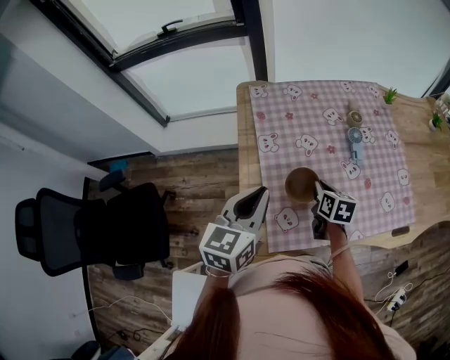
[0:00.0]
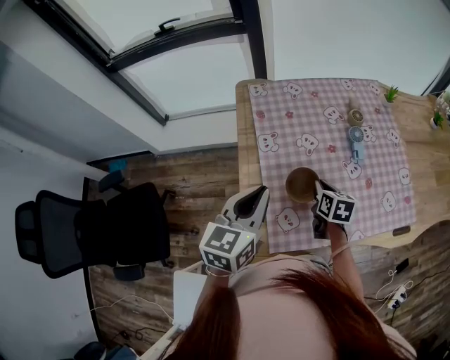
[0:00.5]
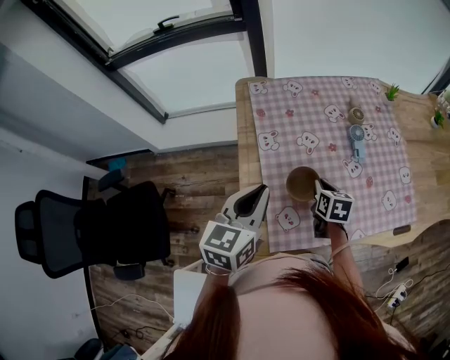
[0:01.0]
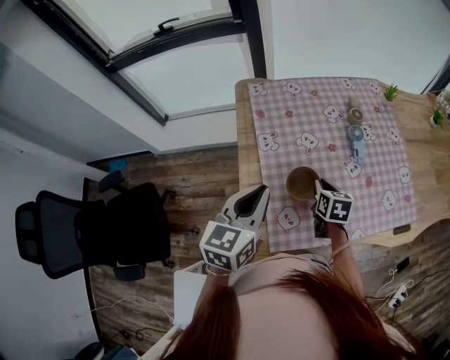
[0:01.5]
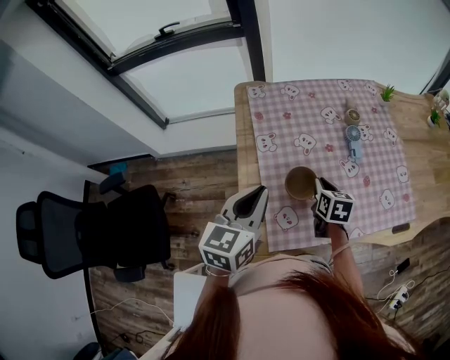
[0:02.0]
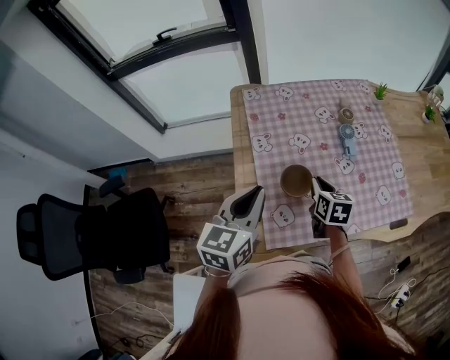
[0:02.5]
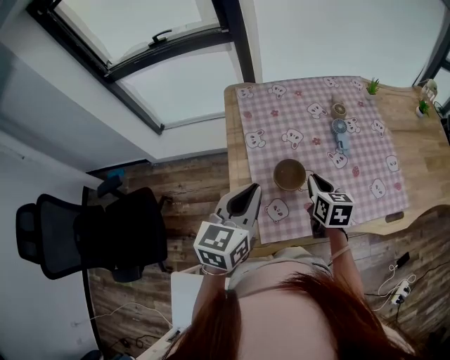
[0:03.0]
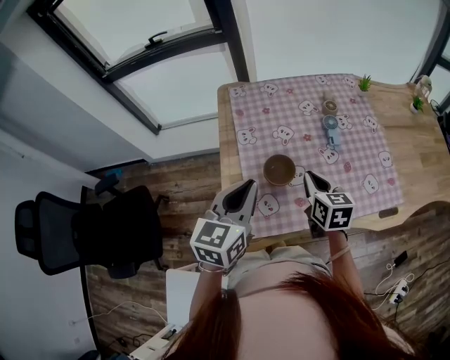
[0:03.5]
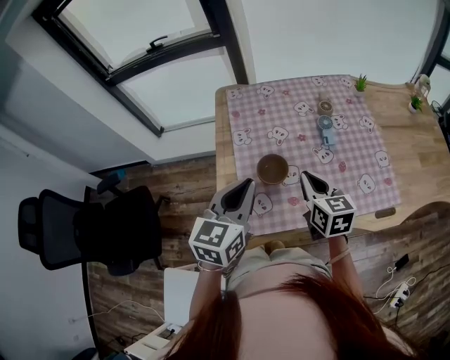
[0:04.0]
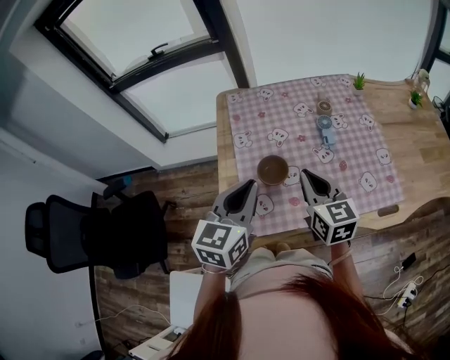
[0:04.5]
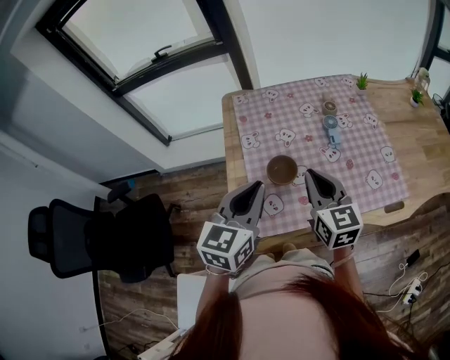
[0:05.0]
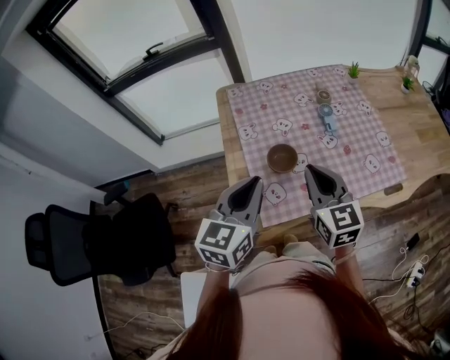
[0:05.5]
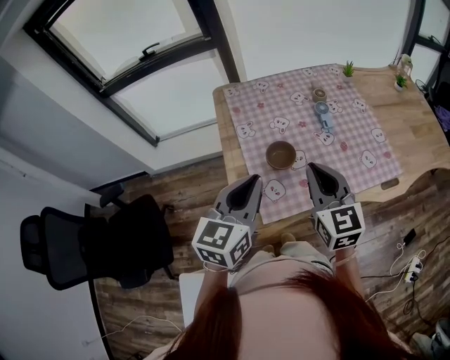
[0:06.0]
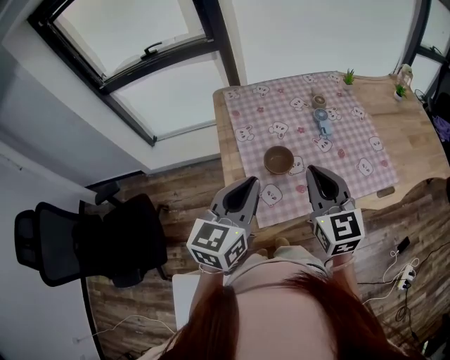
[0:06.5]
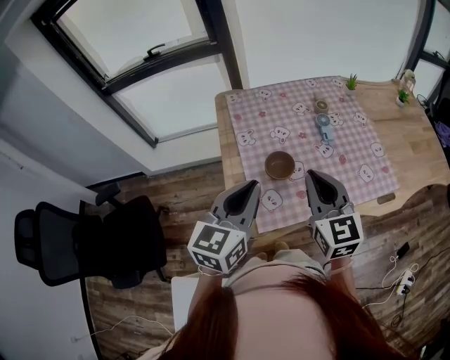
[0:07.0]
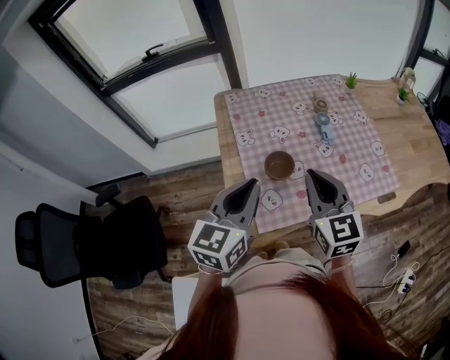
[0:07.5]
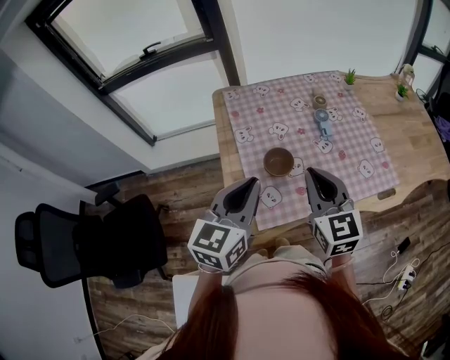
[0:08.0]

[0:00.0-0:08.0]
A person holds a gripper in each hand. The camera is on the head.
0:00.0 to 0:02.0: The grippers move only a little.
0:02.0 to 0:04.0: The right gripper moves upward and backward, about 15 cm, and turns by about 20 degrees, while the left gripper travels to the right and backward by approximately 10 cm.
0:04.0 to 0:06.0: The left gripper shifts about 5 cm backward; the right gripper heads upward and backward, covering about 15 cm, and turns by about 20 degrees.
0:06.0 to 0:08.0: The grippers stay close to where they were, moving slightly.

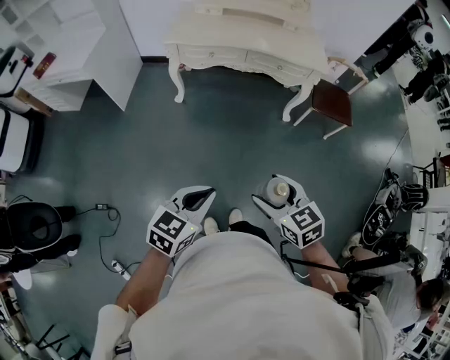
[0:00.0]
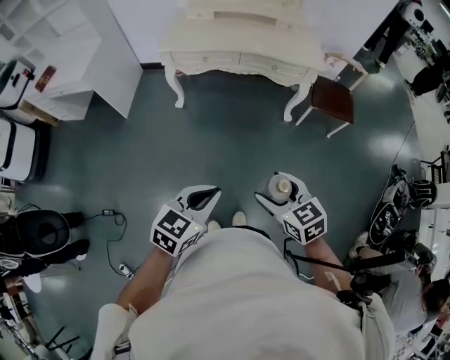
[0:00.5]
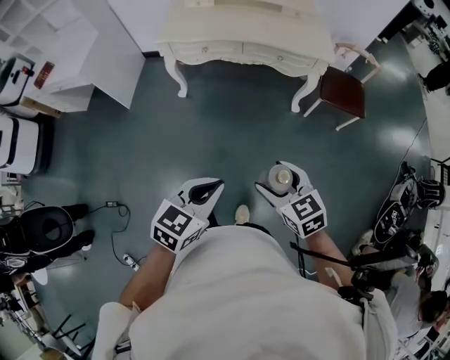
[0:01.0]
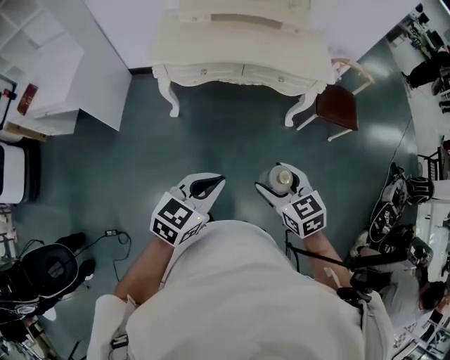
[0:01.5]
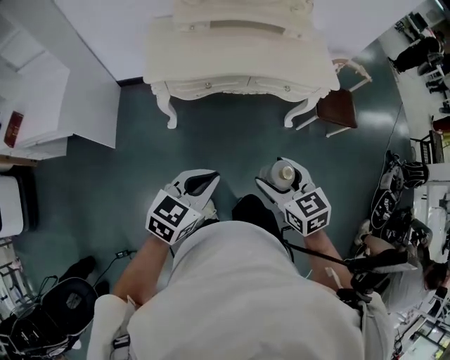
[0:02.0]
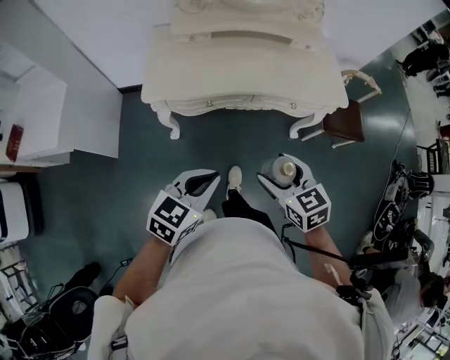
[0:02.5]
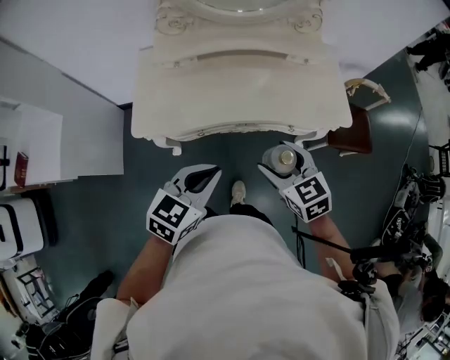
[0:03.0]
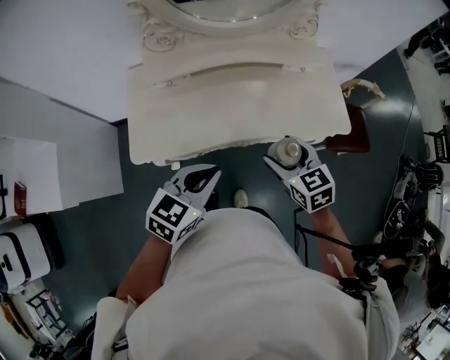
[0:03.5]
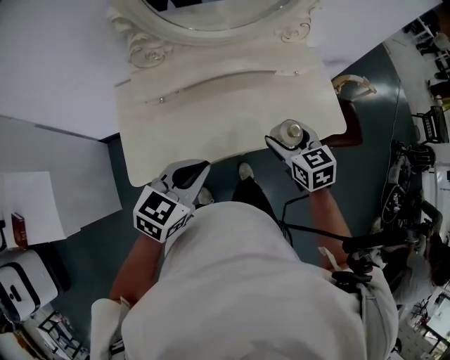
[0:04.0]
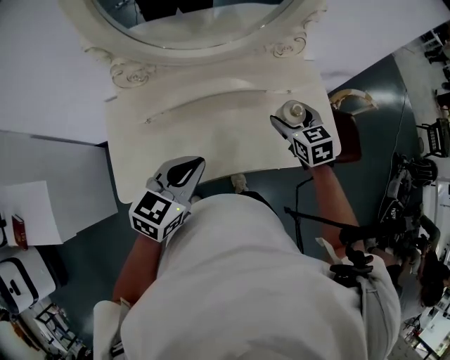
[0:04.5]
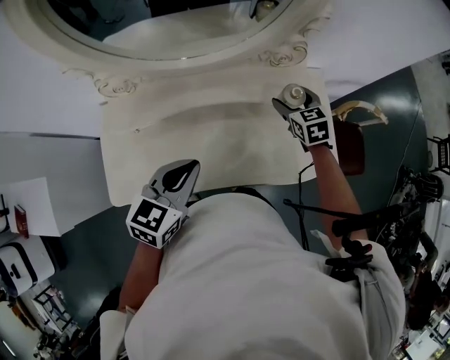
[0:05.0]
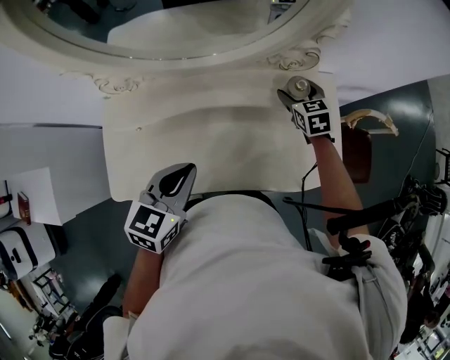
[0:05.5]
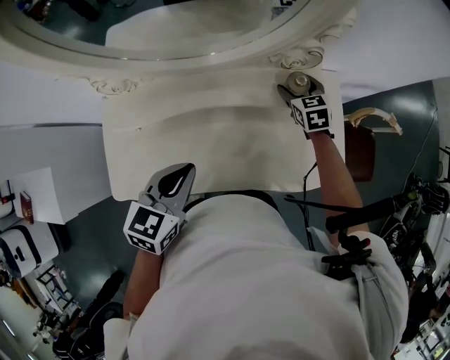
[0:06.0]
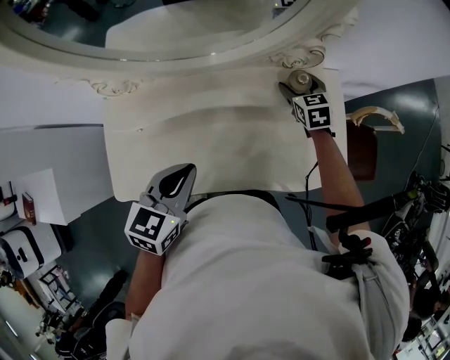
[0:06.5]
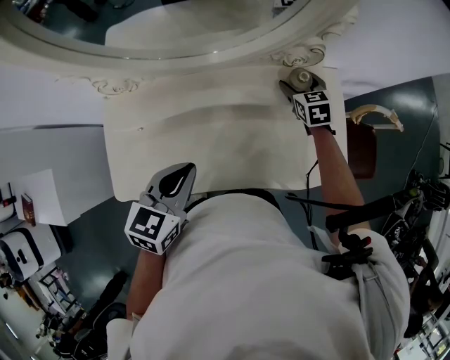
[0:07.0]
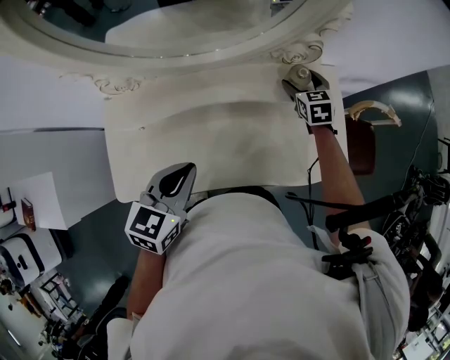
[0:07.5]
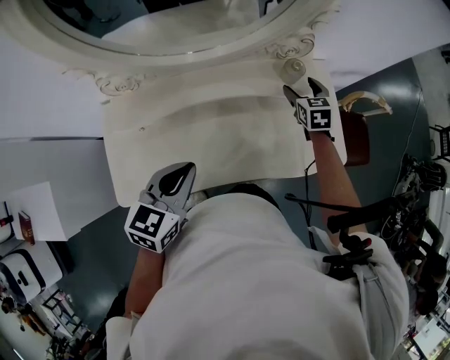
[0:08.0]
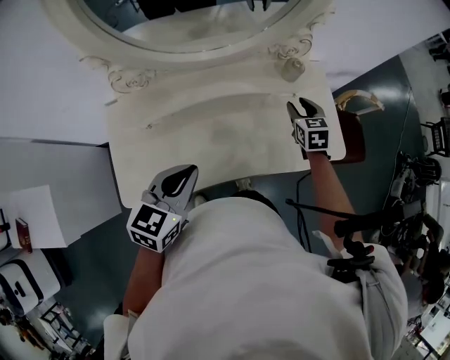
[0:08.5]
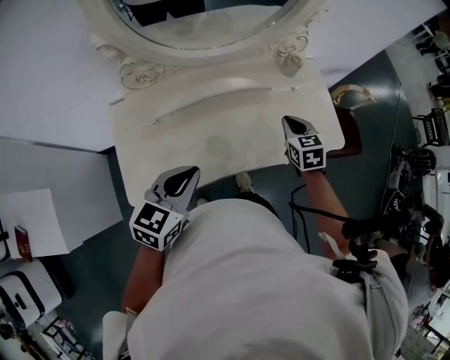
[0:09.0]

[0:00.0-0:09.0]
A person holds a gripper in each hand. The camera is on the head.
0:00.0 to 0:02.0: The two grippers go roughly 35 cm forward.
0:02.0 to 0:04.5: The two grippers travel together, forward, approximately 60 cm.
0:04.5 to 0:07.0: The left gripper heads forward, covering some 10 cm; the right gripper shifts some 25 cm forward and downward.
0:07.0 to 0:09.0: The right gripper moves backward, about 25 cm, and closes. The left gripper heads backward and to the left, covering roughly 15 cm.

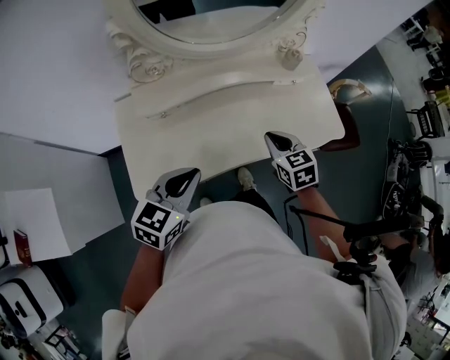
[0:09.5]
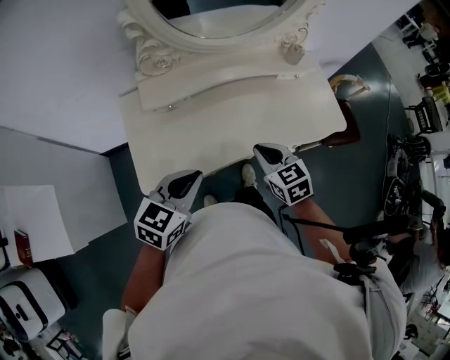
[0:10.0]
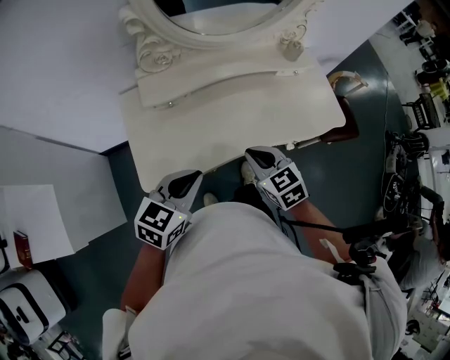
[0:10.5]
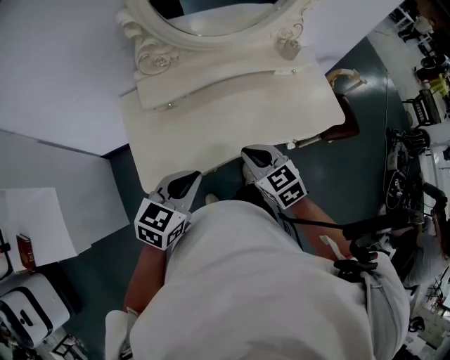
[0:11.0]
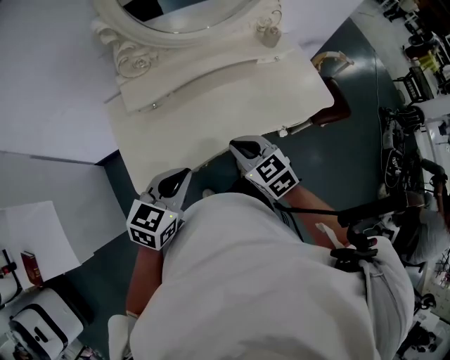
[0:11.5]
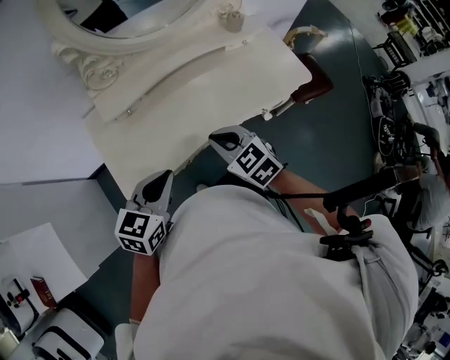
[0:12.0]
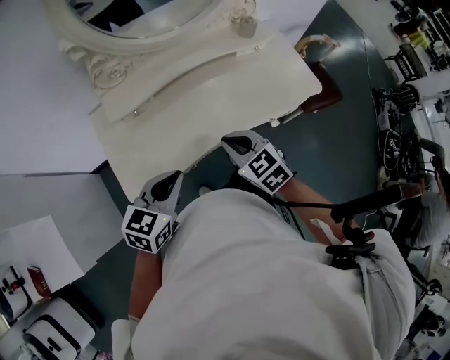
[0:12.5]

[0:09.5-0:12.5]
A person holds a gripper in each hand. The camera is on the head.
0:09.5 to 0:11.0: The left gripper moves backward, roughly 5 cm. The right gripper shifts some 15 cm backward and to the left.
0:11.0 to 0:12.5: The grippers make only small movements.

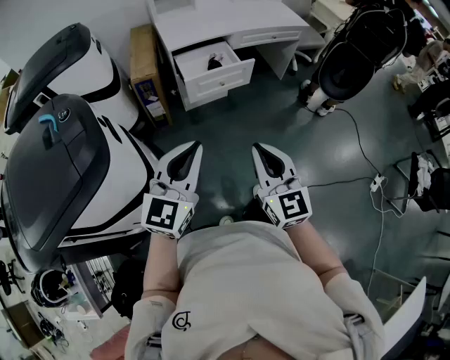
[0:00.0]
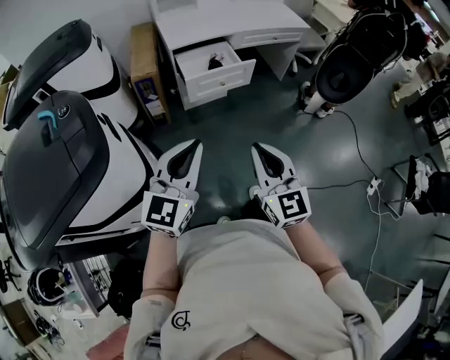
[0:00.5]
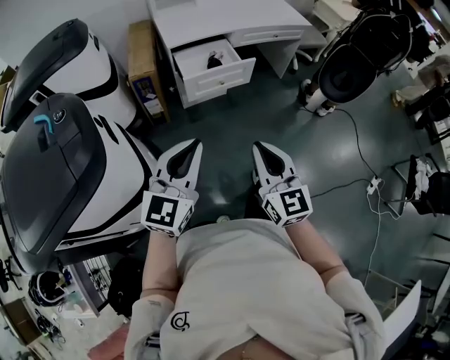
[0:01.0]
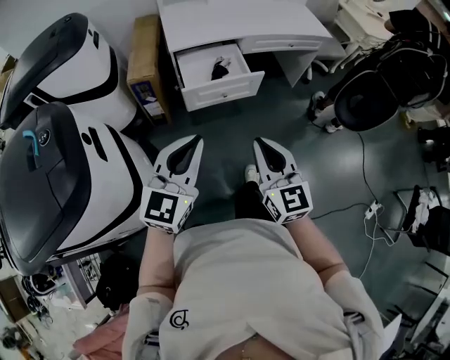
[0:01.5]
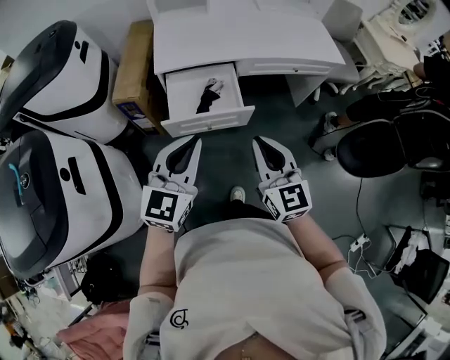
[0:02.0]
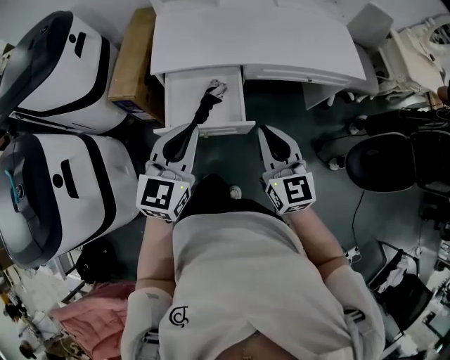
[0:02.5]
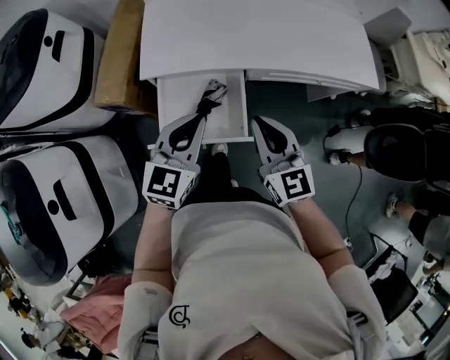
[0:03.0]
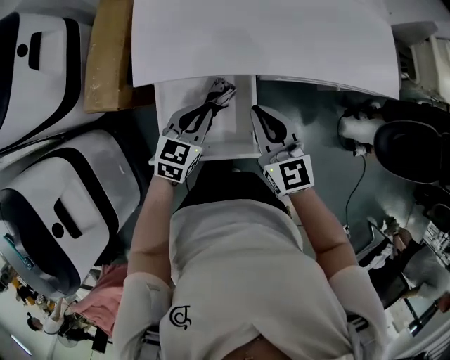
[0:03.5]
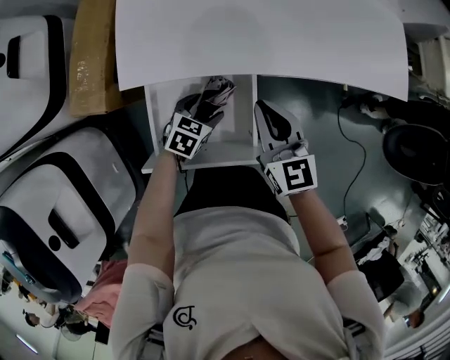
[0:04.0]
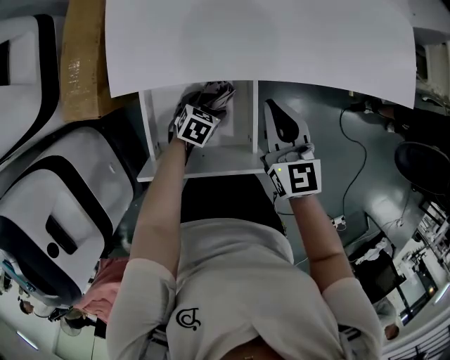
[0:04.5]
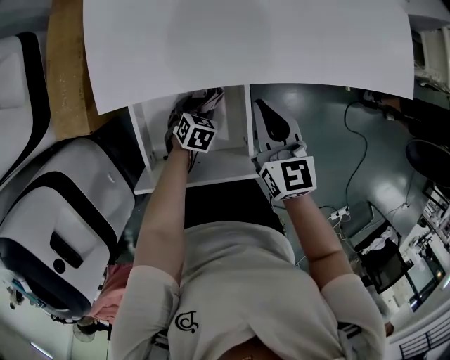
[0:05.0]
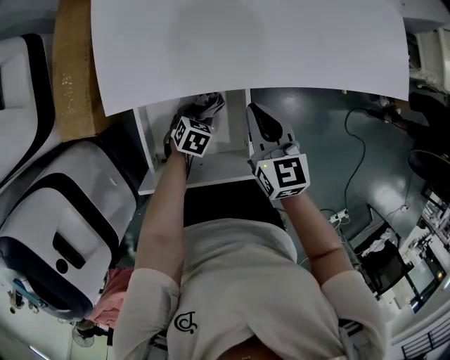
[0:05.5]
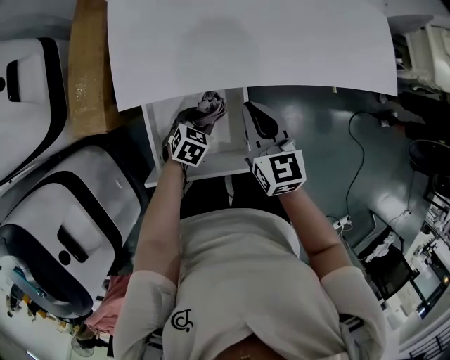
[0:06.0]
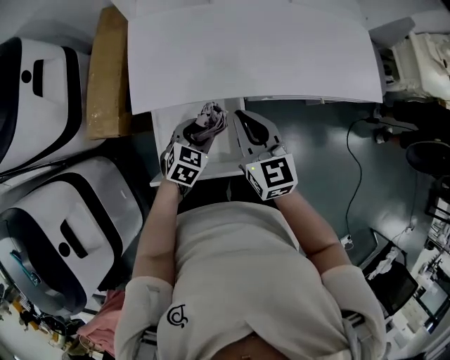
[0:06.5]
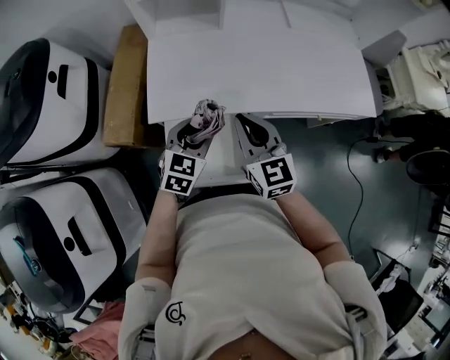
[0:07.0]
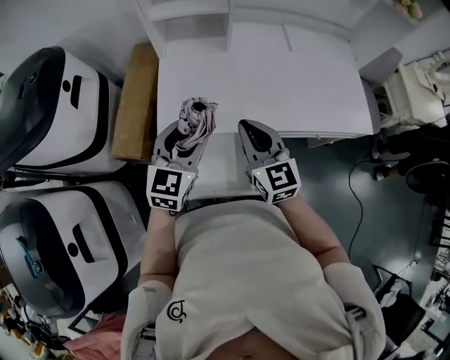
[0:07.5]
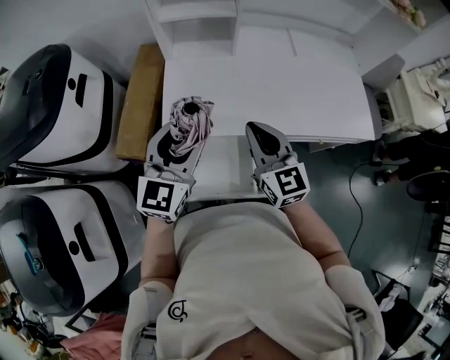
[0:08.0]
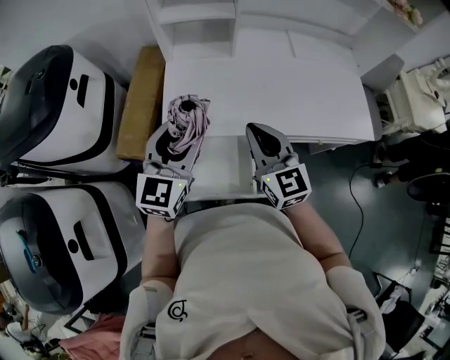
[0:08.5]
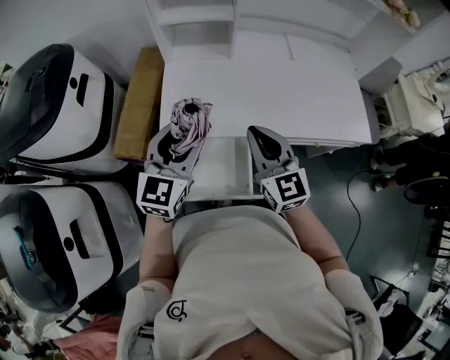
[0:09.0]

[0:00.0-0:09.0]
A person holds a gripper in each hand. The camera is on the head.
0:00.0 to 0:02.0: Both grippers move forward, some 35 cm.
0:02.0 to 0:04.5: The left gripper heads downward and forward, covering about 60 cm, points its fingers about 50 degrees further downward, and opens, while the right gripper travels forward and downward by roughly 40 cm.
0:04.5 to 0:07.0: The right gripper is displaced upward and to the left by about 15 cm. The left gripper moves upward, about 30 cm, rotates about 40 degrees, and closes.
0:07.0 to 0:09.0: The left gripper is displaced upward by approximately 15 cm, and rotates roughly 30 degrees. Meanwhile the right gripper heads upward, covering about 5 cm.
